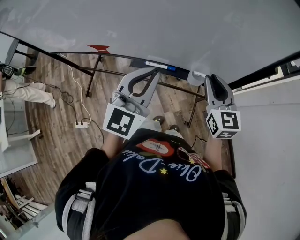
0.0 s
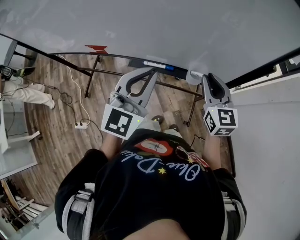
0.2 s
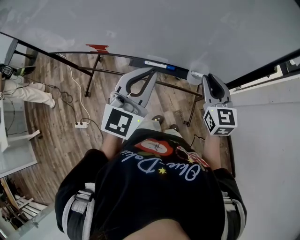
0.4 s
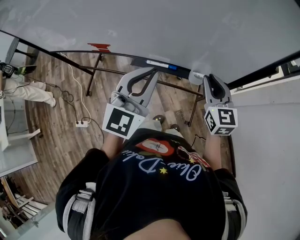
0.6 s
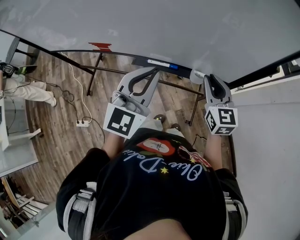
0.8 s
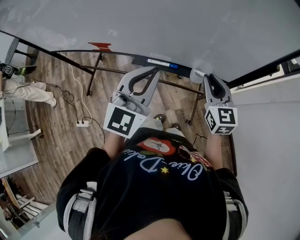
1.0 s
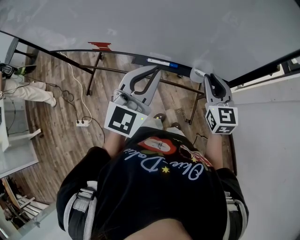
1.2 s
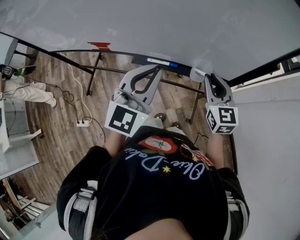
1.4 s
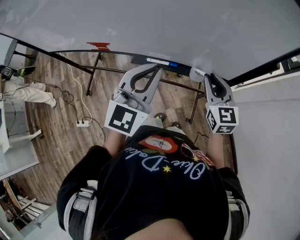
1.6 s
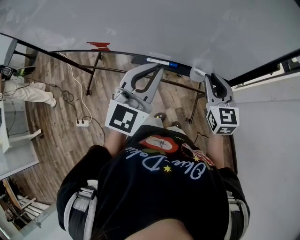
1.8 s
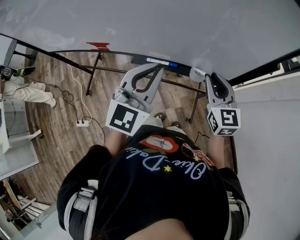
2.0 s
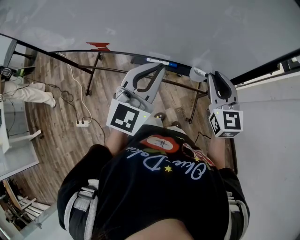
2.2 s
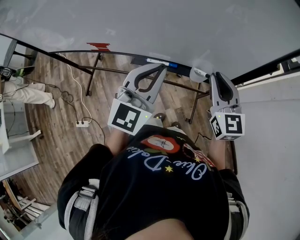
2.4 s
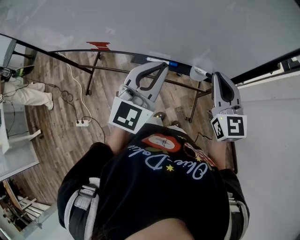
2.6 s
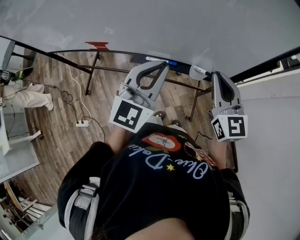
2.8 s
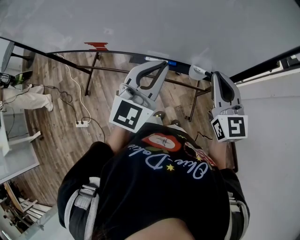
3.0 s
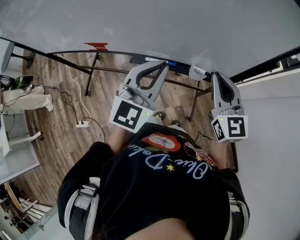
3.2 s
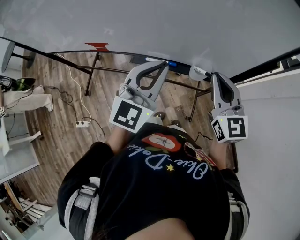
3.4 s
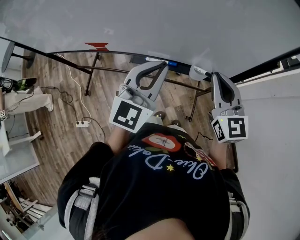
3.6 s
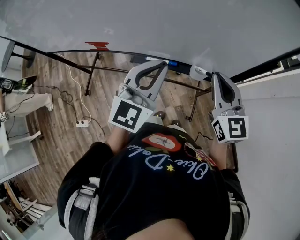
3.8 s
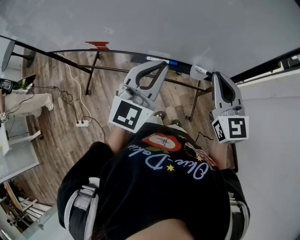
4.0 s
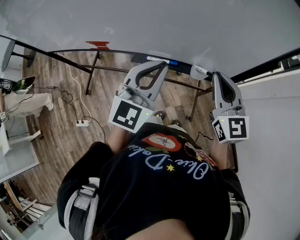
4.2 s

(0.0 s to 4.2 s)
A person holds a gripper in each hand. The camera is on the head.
0.0 s - 1.4 s: The grippers make only small movements.
1.4 s - 2.8 s: The right gripper travels upward by about 5 cm.
2.8 s - 4.2 s: Neither gripper changes place.

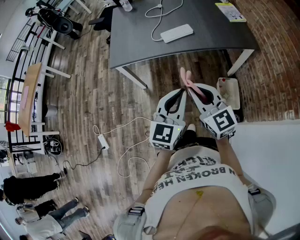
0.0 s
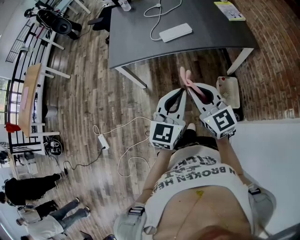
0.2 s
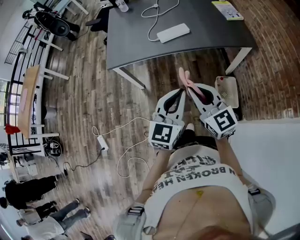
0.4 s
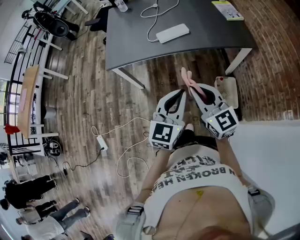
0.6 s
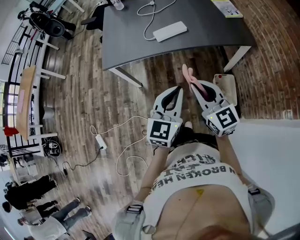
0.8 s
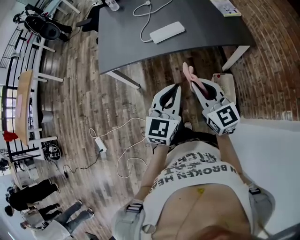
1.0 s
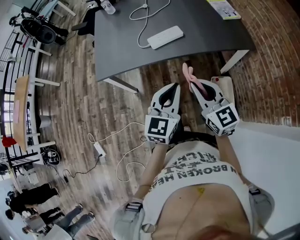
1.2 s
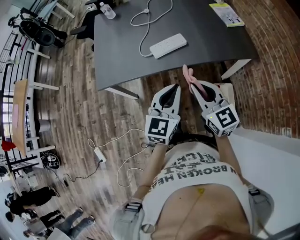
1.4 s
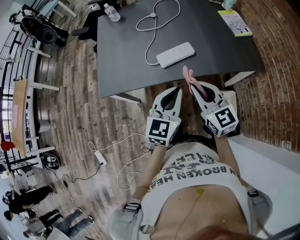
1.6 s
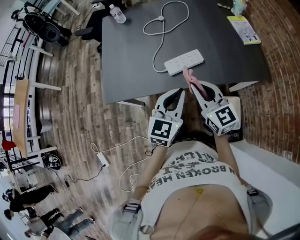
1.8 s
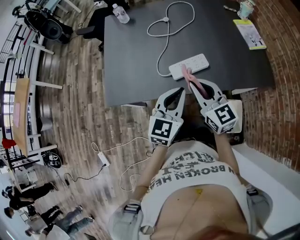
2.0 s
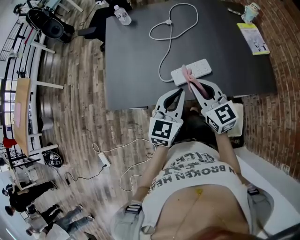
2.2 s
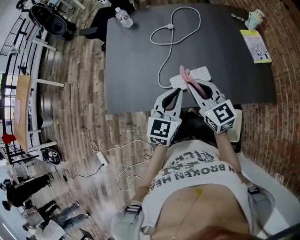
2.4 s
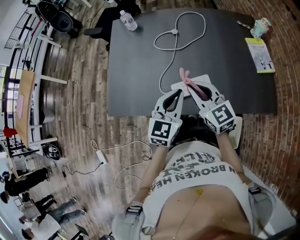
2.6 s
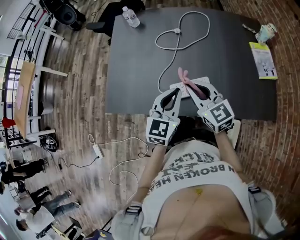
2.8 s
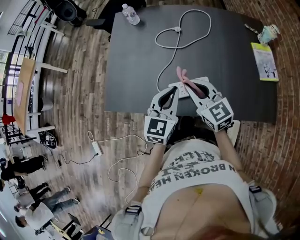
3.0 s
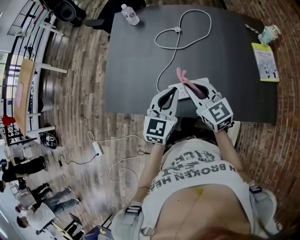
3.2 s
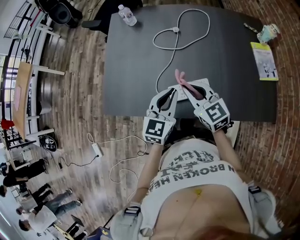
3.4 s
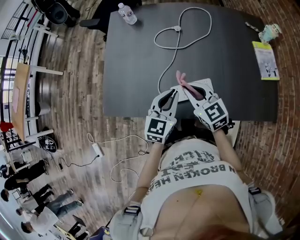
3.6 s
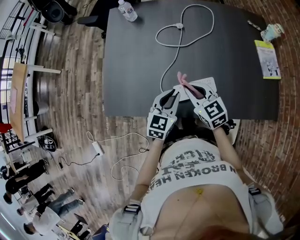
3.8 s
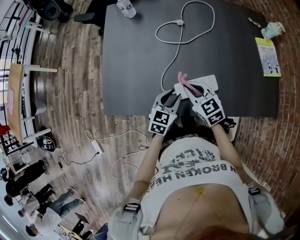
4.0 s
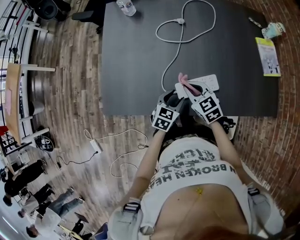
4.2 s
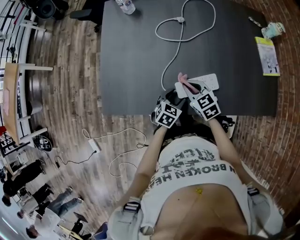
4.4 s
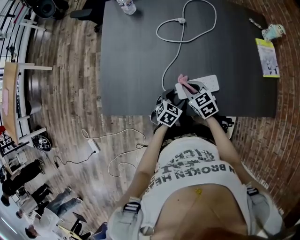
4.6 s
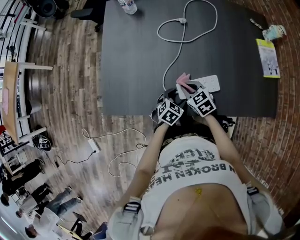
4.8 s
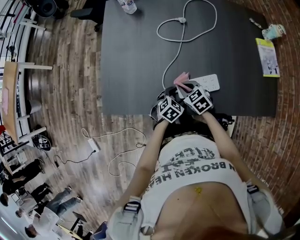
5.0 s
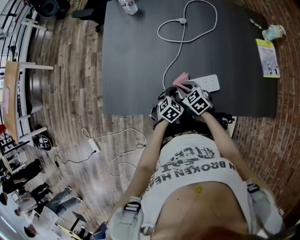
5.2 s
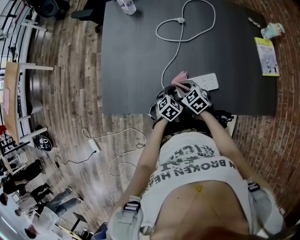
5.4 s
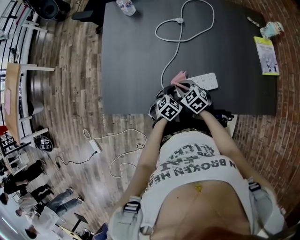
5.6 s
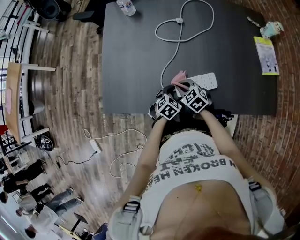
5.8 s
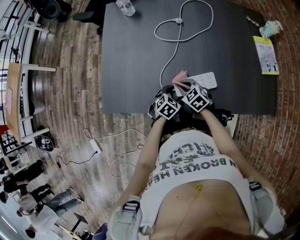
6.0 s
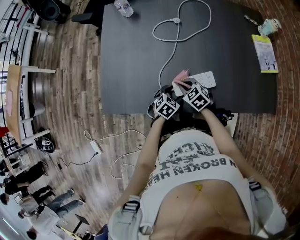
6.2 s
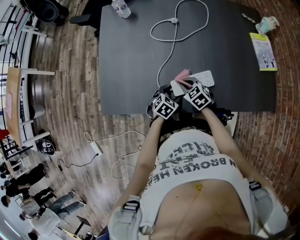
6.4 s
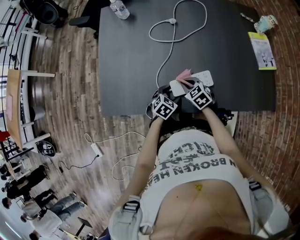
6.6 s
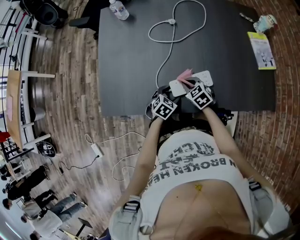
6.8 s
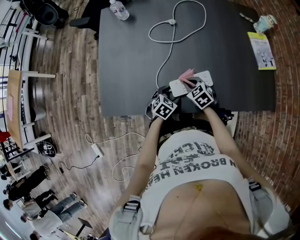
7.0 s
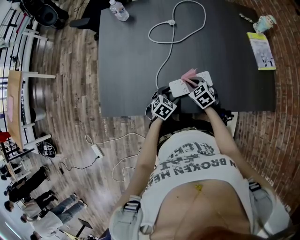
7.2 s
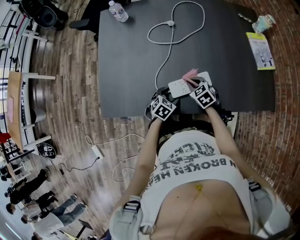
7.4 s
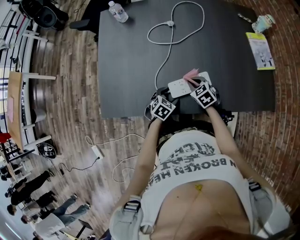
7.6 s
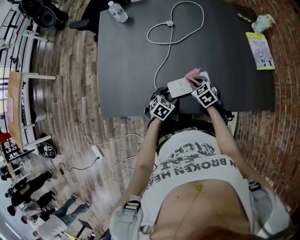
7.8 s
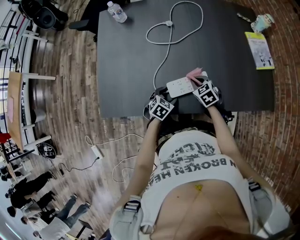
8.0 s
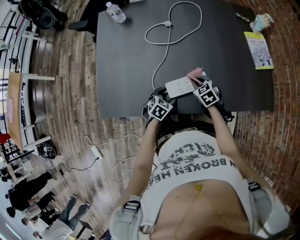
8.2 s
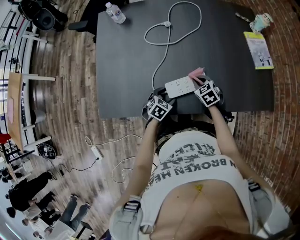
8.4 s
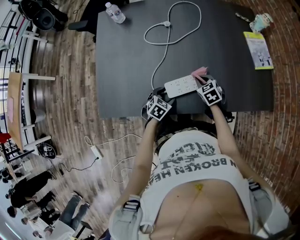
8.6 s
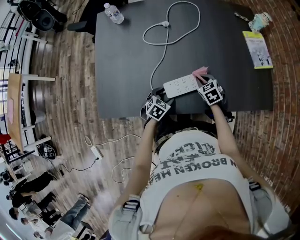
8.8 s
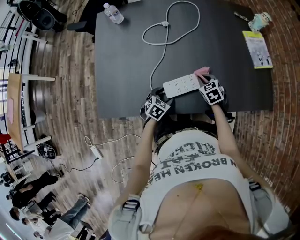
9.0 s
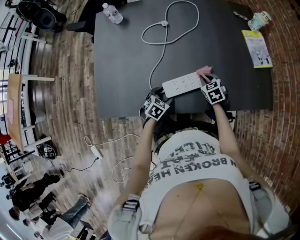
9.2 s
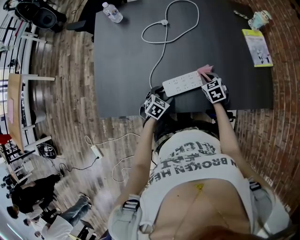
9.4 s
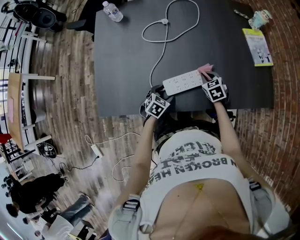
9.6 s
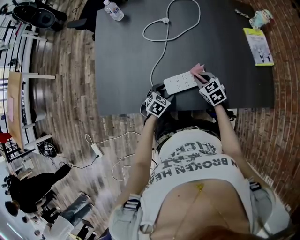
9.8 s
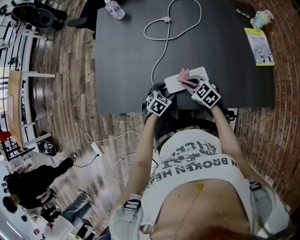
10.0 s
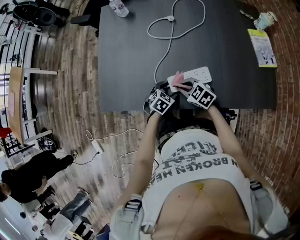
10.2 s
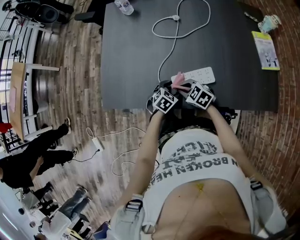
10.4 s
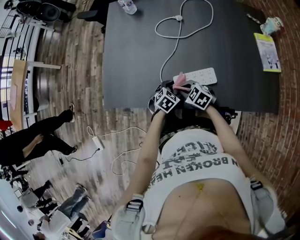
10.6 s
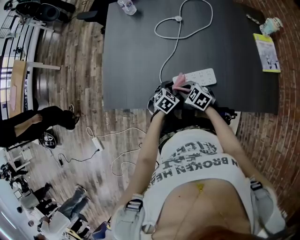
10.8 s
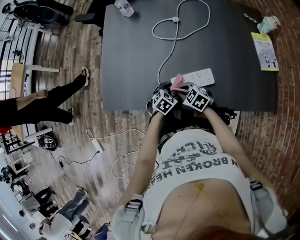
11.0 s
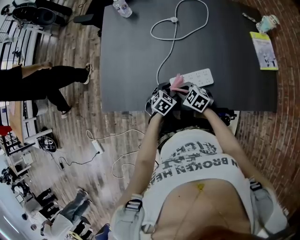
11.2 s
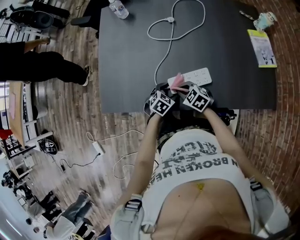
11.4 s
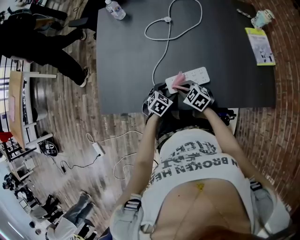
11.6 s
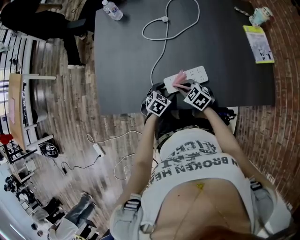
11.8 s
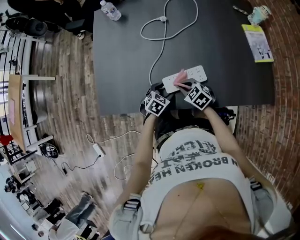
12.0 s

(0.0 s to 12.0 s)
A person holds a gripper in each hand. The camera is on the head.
0.0 s - 1.6 s: Both grippers travel together forward, about 25 cm.
1.6 s - 3.0 s: Both grippers move forward, some 25 cm. The right gripper rotates approximately 20 degrees.
3.0 s - 4.4 s: The two grippers go about 20 cm downward. The left gripper changes its angle by roughly 40 degrees, and opens up. The right gripper swivels some 30 degrees.
4.4 s - 6.0 s: The right gripper heads downward, covering some 5 cm.
6.0 s - 7.6 s: The right gripper moves to the right, approximately 10 cm.
7.6 s - 9.0 s: The right gripper moves to the right, some 10 cm.
9.0 s - 10.4 s: The right gripper changes place by about 20 cm, and turns by approximately 40 degrees.
10.4 s - 12.0 s: The right gripper heads to the right, covering about 5 cm.

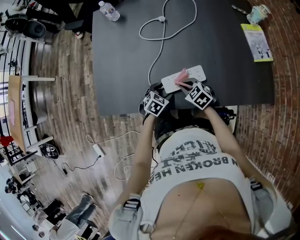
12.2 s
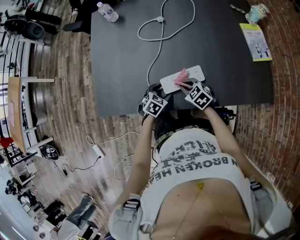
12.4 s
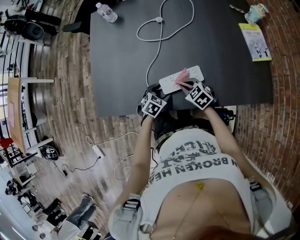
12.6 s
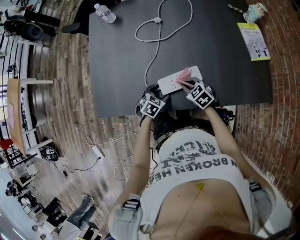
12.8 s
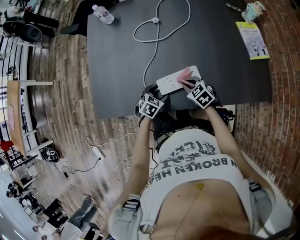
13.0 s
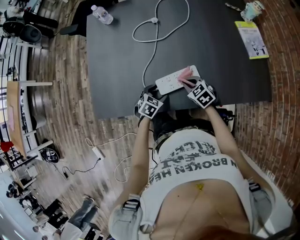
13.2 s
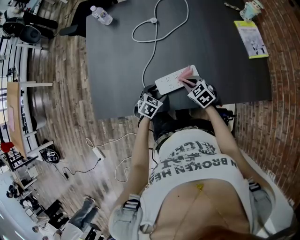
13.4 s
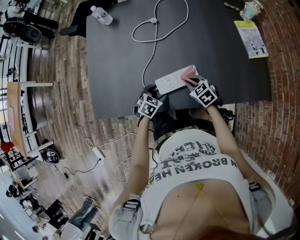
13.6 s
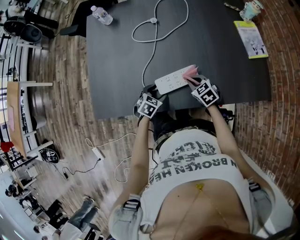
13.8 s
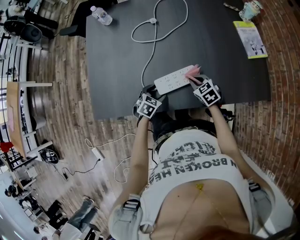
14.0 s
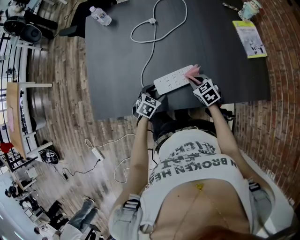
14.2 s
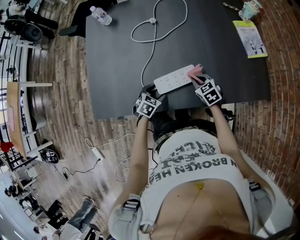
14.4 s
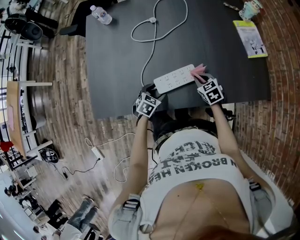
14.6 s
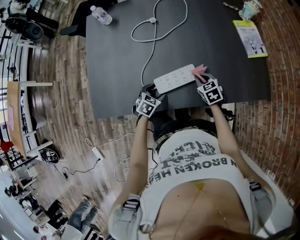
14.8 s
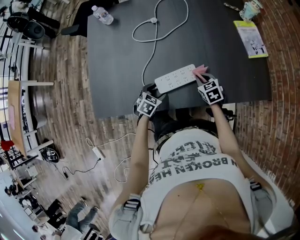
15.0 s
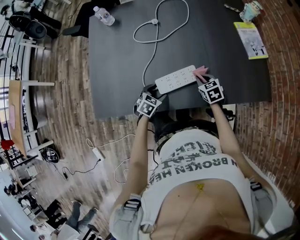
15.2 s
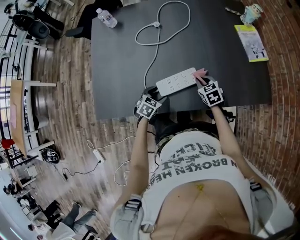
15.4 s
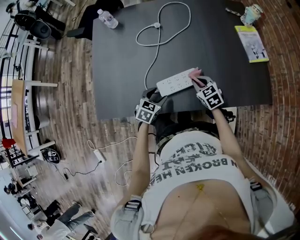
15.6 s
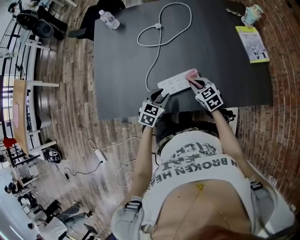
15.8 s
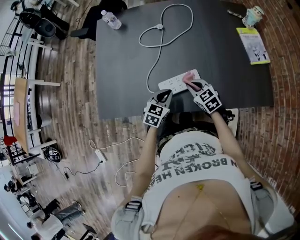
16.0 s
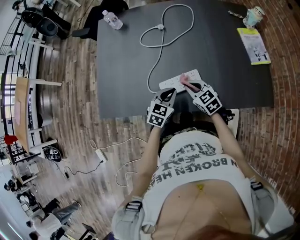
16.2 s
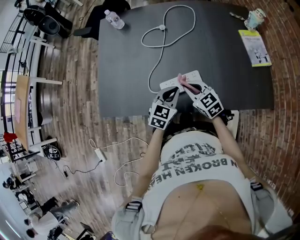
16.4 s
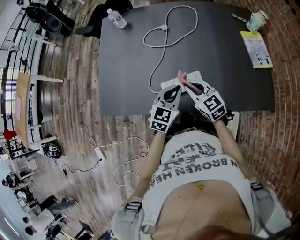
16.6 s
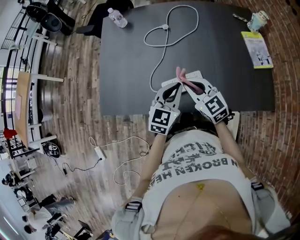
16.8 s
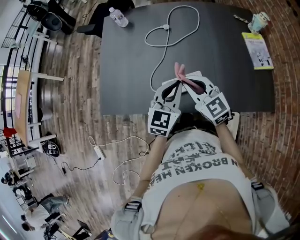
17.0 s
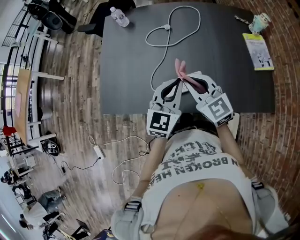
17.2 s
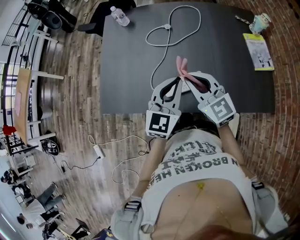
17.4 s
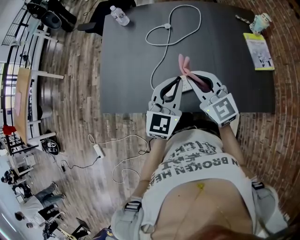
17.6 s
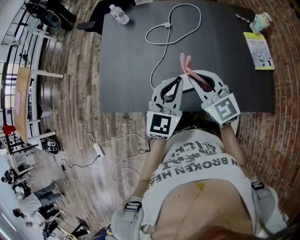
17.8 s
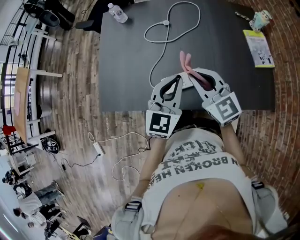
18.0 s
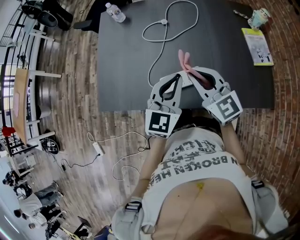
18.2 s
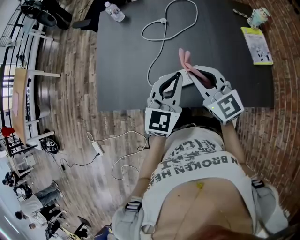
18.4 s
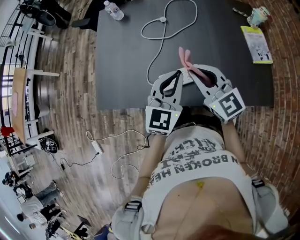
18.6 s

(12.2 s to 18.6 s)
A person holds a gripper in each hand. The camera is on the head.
12.2 s - 13.8 s: The right gripper moves to the right, roughly 10 cm.
13.8 s - 15.4 s: The grippers make only small movements.
15.4 s - 17.0 s: The right gripper travels upward and to the left by roughly 25 cm, and angles its fingers upward, by approximately 30 degrees; the left gripper heads upward, covering roughly 25 cm, angles its fingers upward, by roughly 40 degrees, and closes up.
17.0 s - 18.6 s: The right gripper is displaced upward by approximately 5 cm.

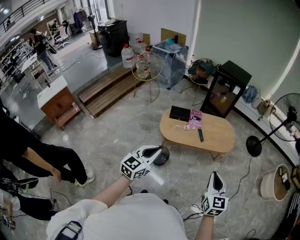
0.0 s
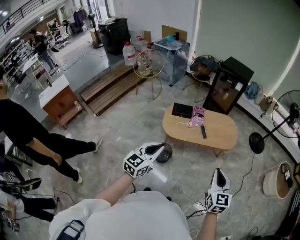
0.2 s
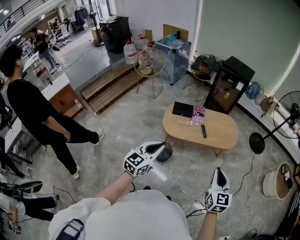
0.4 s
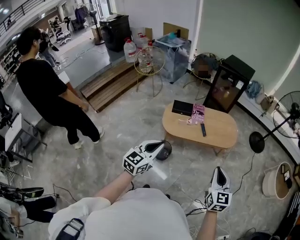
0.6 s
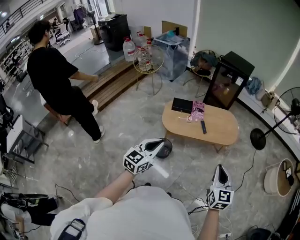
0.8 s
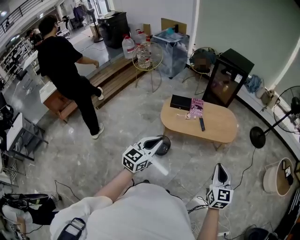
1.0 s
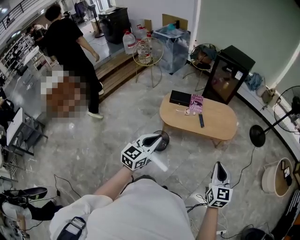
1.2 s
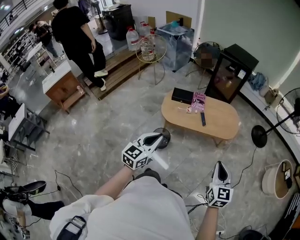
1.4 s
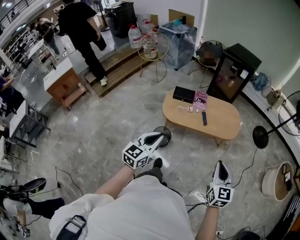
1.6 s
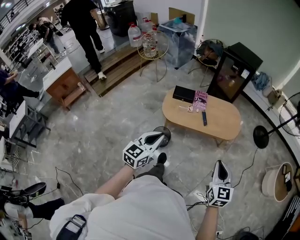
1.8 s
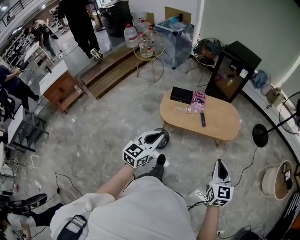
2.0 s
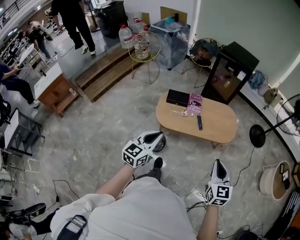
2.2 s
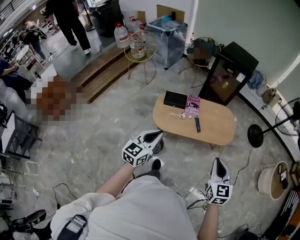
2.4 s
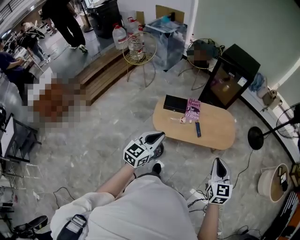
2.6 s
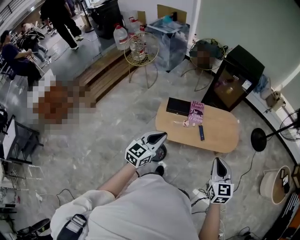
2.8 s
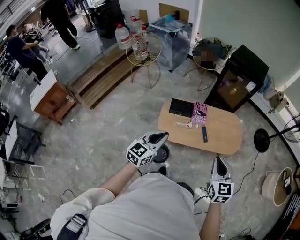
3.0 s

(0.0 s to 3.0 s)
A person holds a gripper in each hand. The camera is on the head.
0.0 s - 1.6 s: Both grippers travel together to the right, some 10 cm.
1.6 s - 3.0 s: The left gripper is displaced forward by some 25 cm, while the right gripper heads forward and to the left, covering some 30 cm.
